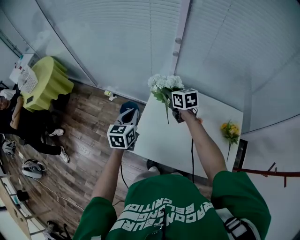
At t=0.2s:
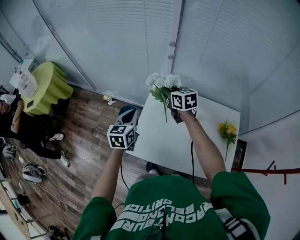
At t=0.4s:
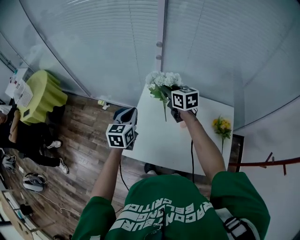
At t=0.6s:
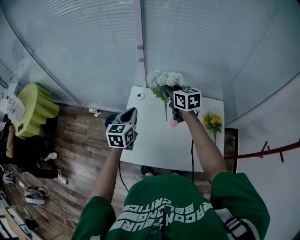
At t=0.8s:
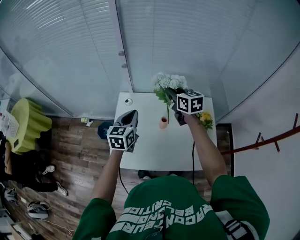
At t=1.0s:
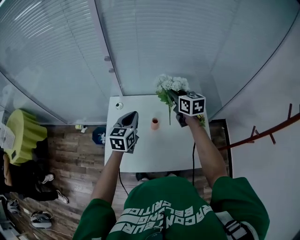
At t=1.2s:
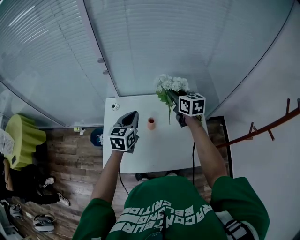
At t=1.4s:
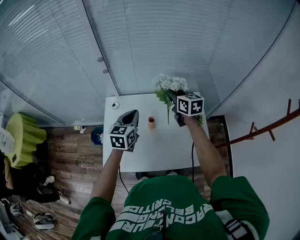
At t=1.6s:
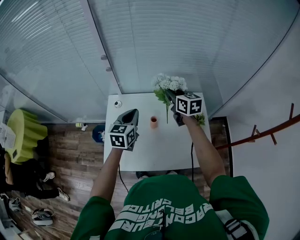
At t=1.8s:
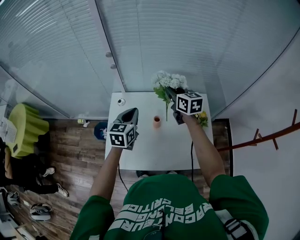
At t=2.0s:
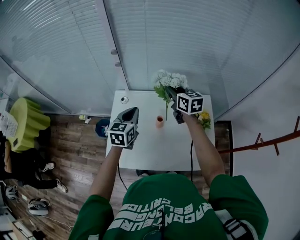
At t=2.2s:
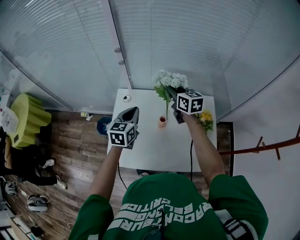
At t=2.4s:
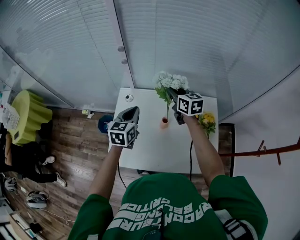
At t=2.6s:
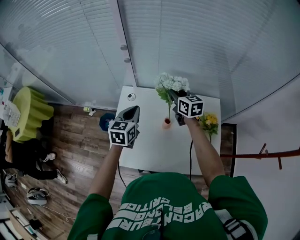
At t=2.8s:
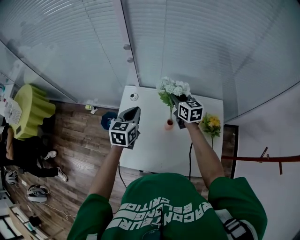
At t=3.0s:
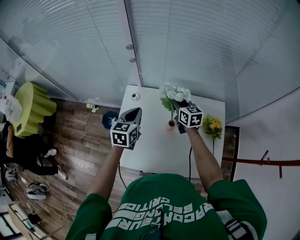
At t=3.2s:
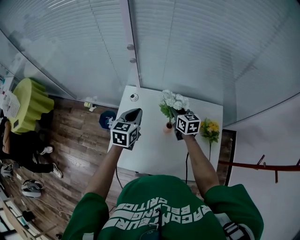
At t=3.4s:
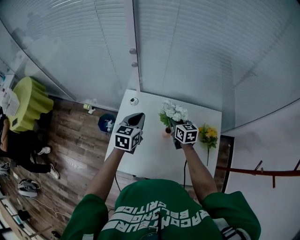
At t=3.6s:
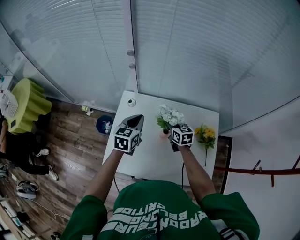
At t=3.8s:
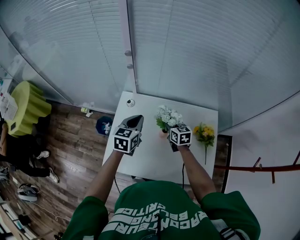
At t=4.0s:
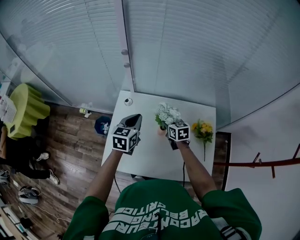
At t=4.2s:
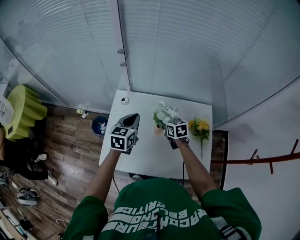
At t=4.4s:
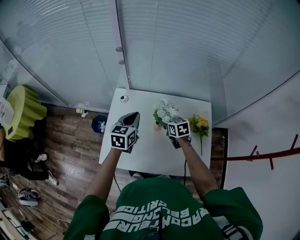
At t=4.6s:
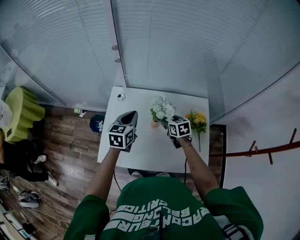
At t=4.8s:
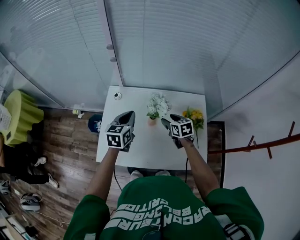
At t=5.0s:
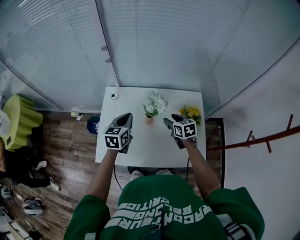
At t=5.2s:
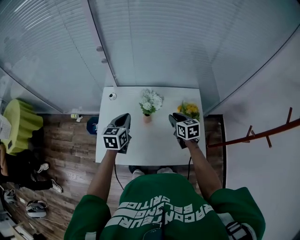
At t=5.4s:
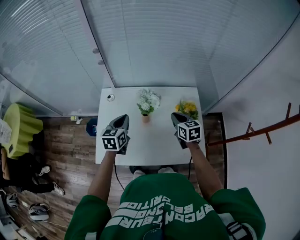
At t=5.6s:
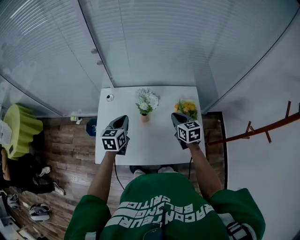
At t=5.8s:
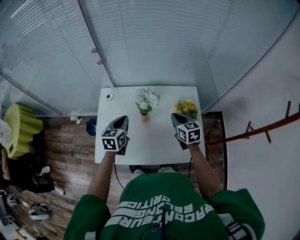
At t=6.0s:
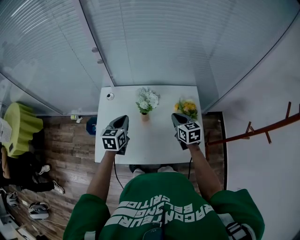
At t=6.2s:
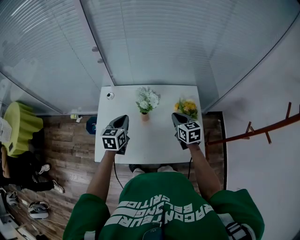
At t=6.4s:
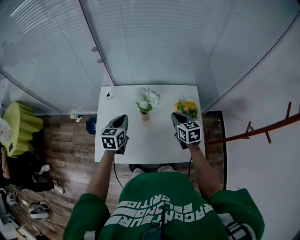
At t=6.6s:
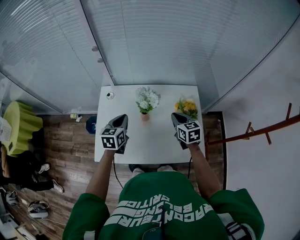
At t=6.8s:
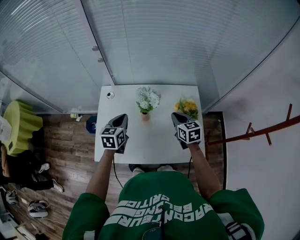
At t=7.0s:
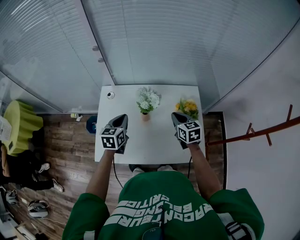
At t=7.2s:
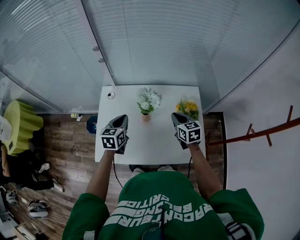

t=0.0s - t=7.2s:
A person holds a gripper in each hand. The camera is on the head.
t=0.0s - t=1.4s: The right gripper moves roughly 35 cm, and turns by roughly 30 degrees. Meanwhile the left gripper moves roughly 30 cm, and swivels roughly 30 degrees.
t=1.4s - t=2.8s: The left gripper shifts some 10 cm to the left and forward. The right gripper heads to the left, downward and forward, covering about 15 cm.
t=2.8s - t=4.4s: The right gripper travels backward and downward by approximately 15 cm, changes its angle by about 20 degrees, and opens. Meanwhile the left gripper moves approximately 5 cm.
t=4.4s - t=5.8s: The right gripper shifts approximately 20 cm to the right, upward and backward, and closes up, while the left gripper goes approximately 5 cm backward.
t=5.8s - t=7.2s: The two grippers keep their place.

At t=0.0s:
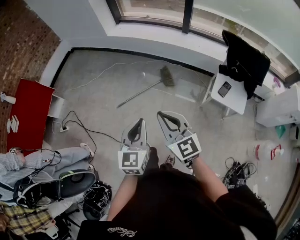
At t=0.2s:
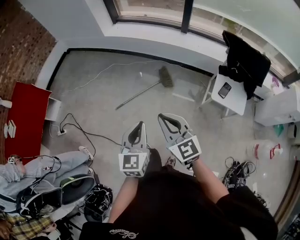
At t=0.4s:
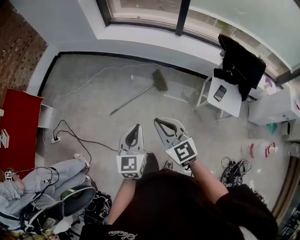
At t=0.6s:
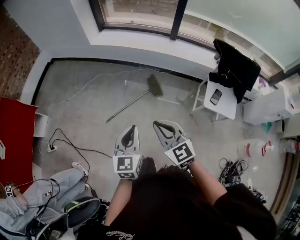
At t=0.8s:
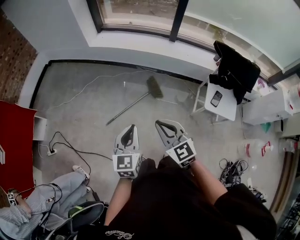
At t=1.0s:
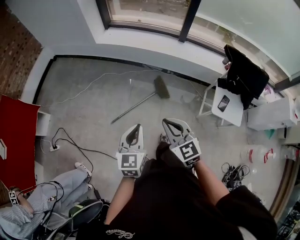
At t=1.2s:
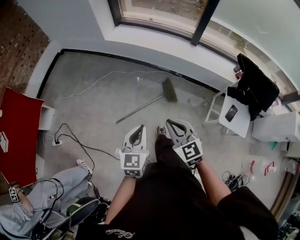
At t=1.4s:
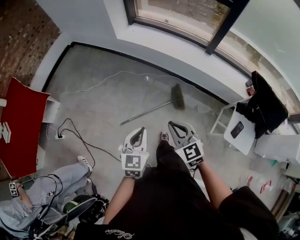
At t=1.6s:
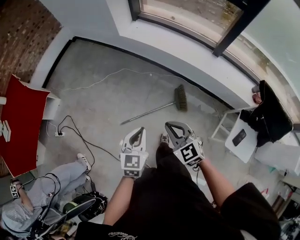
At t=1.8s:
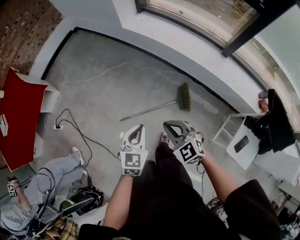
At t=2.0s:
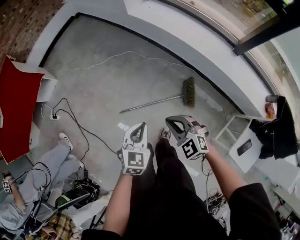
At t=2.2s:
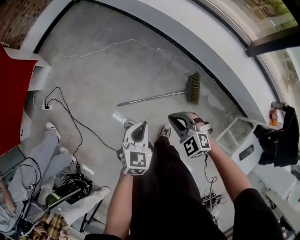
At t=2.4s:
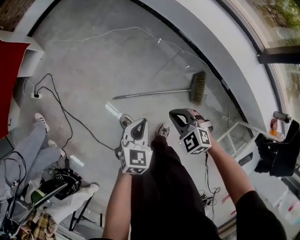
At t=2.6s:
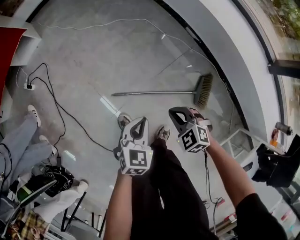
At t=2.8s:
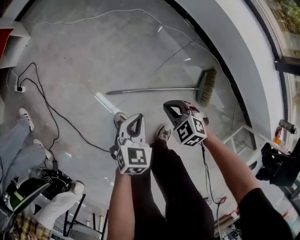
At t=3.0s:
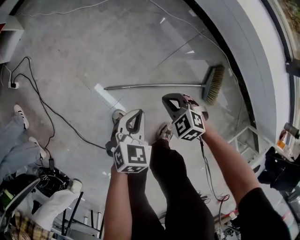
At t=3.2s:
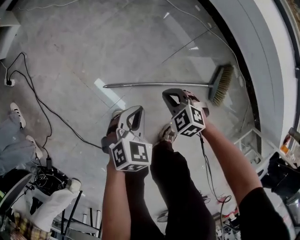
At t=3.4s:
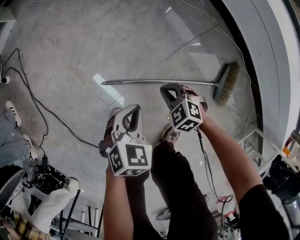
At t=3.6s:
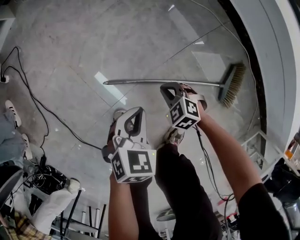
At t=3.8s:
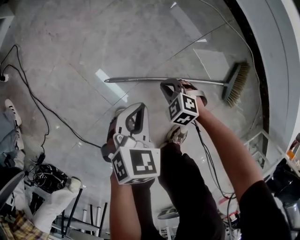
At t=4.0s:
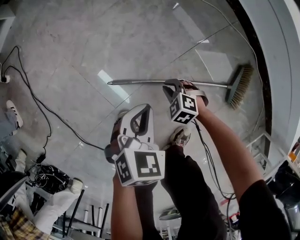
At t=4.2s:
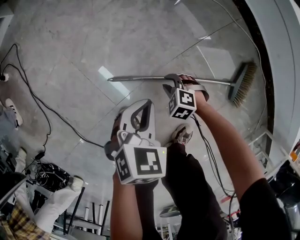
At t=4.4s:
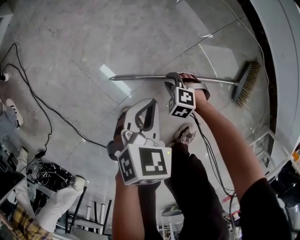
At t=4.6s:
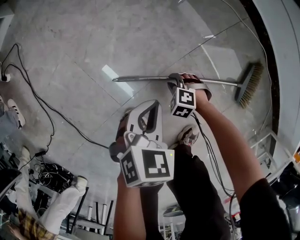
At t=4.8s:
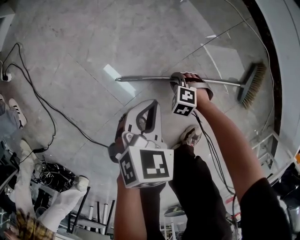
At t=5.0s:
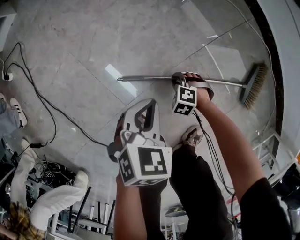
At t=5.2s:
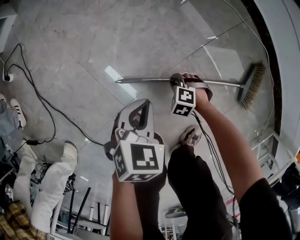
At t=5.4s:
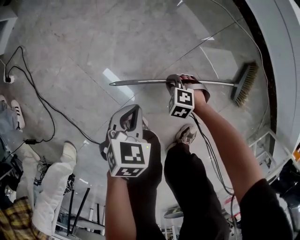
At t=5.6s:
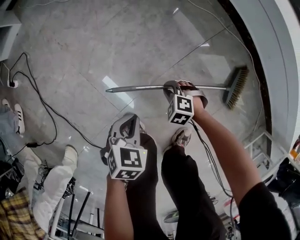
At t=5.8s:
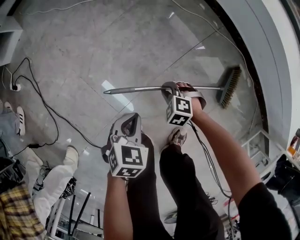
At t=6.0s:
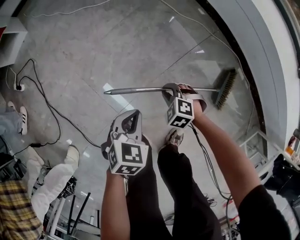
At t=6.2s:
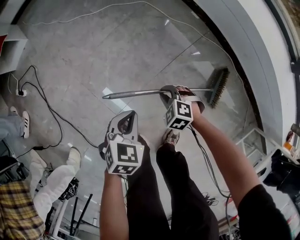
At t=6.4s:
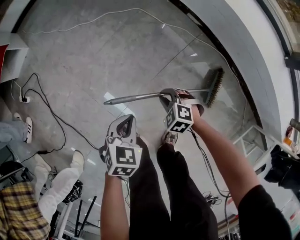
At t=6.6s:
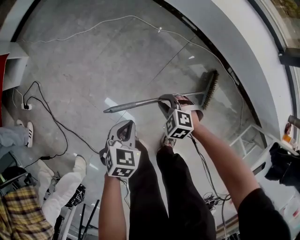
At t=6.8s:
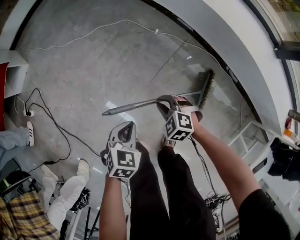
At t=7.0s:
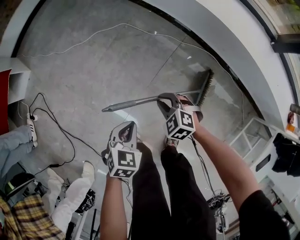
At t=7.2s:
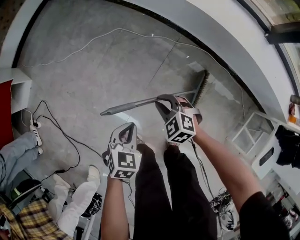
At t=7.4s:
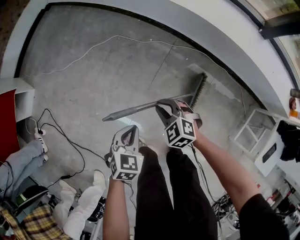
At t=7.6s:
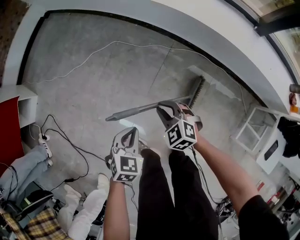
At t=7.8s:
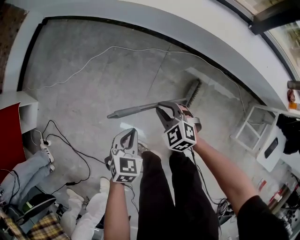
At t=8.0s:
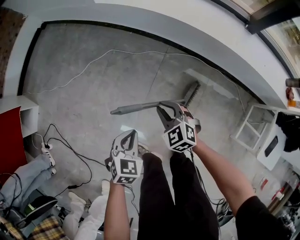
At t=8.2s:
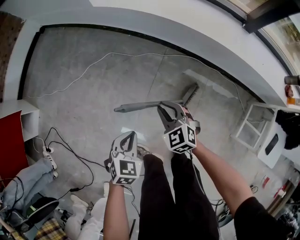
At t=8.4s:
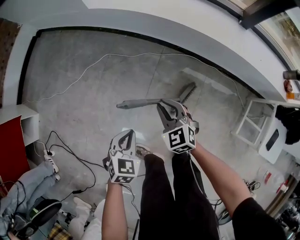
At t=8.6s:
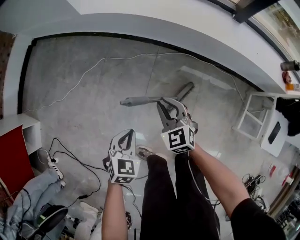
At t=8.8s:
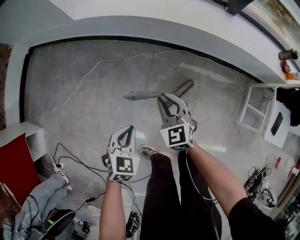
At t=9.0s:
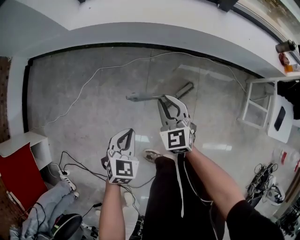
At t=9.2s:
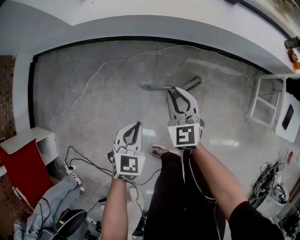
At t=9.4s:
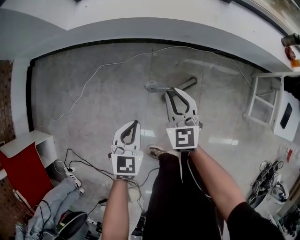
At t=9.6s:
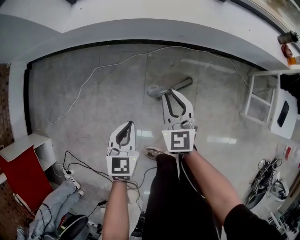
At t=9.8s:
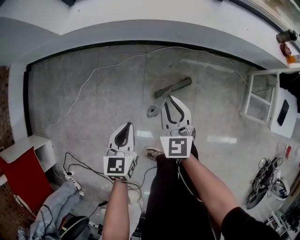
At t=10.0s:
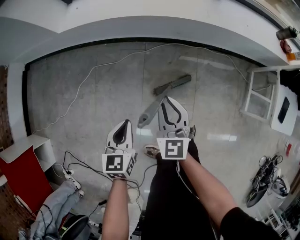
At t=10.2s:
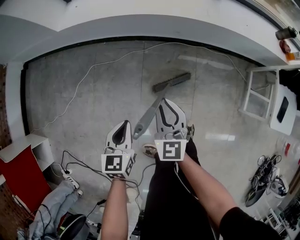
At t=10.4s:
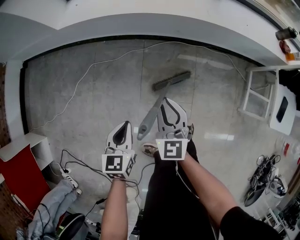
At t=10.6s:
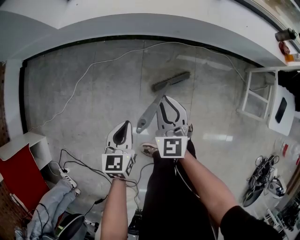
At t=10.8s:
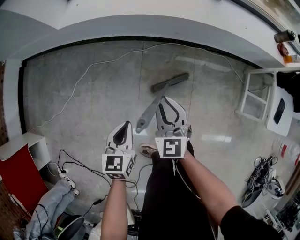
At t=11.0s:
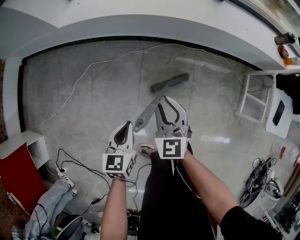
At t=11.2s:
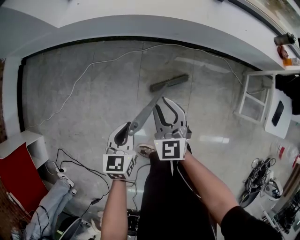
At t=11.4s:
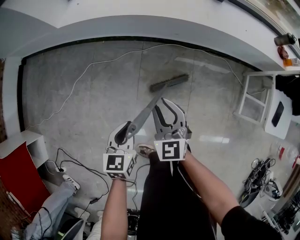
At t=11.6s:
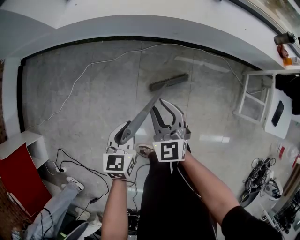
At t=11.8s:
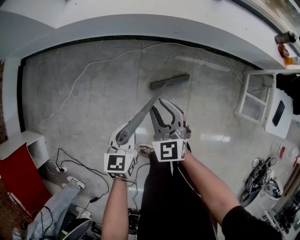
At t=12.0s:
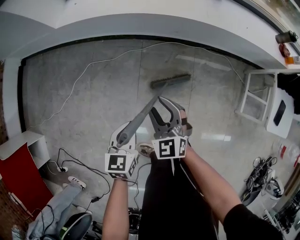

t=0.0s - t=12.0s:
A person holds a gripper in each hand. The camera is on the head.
t=0.0s - t=1.6s: The two grippers go about 35 cm forward. The right gripper swivels approximately 30 degrees.
t=1.6s - t=3.0s: The grippers both shift downward by roughly 50 cm. The left gripper rotates about 20 degrees. Meanwhile the right gripper rotates approximately 40 degrees.
t=3.0s - t=4.4s: The right gripper goes about 25 cm downward, rotates some 20 degrees, and opens, while the left gripper moves downward, approximately 10 cm.
t=4.4s - t=6.0s: The left gripper is displaced upward by approximately 10 cm, while the right gripper moves upward, some 15 cm.
t=6.0s - t=7.6s: The right gripper heads upward, covering some 25 cm, and rotates about 40 degrees; the left gripper is displaced upward and to the right by approximately 15 cm.
t=7.6s - t=9.0s: The left gripper changes place by approximately 5 cm, and swivels approximately 20 degrees. Meanwhile the right gripper changes place by some 10 cm, and rotates roughly 50 degrees.
t=9.0s - t=10.4s: The left gripper rotates about 30 degrees.
t=10.4s - t=12.0s: The grippers move only a little.

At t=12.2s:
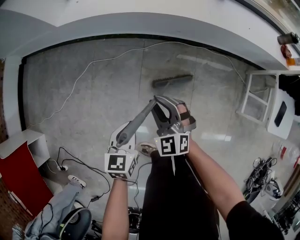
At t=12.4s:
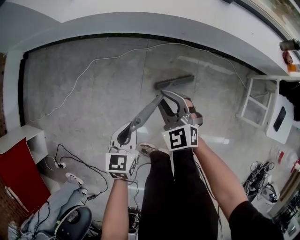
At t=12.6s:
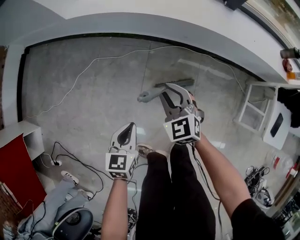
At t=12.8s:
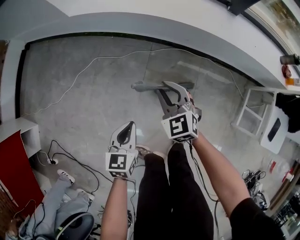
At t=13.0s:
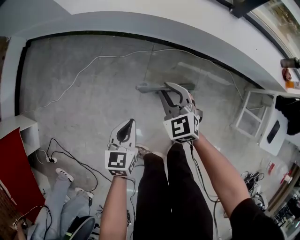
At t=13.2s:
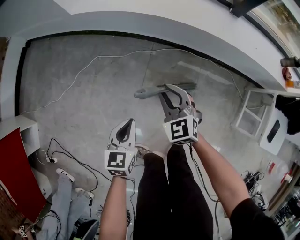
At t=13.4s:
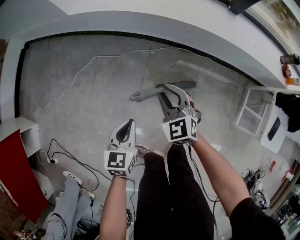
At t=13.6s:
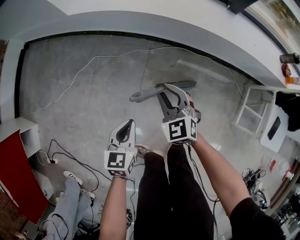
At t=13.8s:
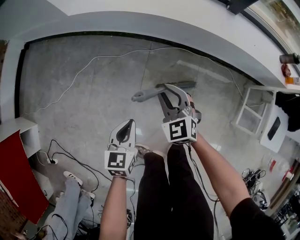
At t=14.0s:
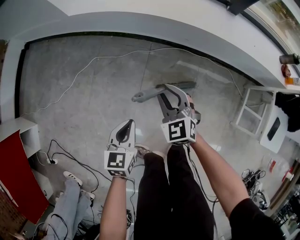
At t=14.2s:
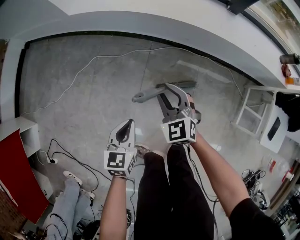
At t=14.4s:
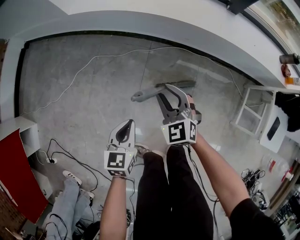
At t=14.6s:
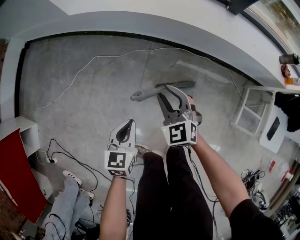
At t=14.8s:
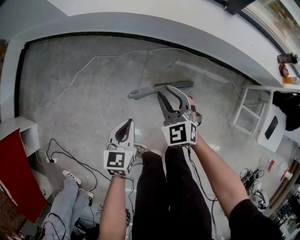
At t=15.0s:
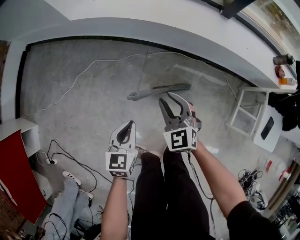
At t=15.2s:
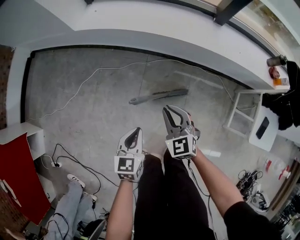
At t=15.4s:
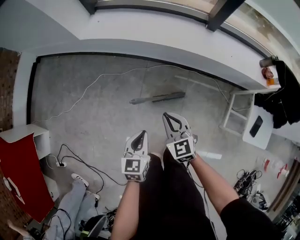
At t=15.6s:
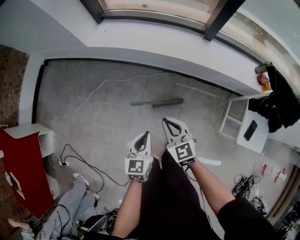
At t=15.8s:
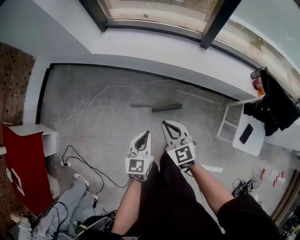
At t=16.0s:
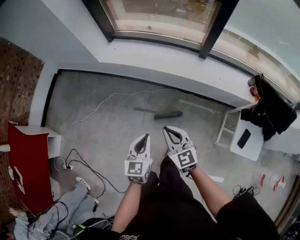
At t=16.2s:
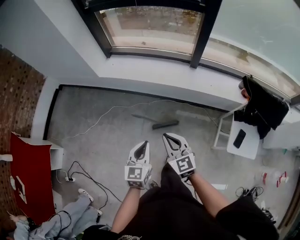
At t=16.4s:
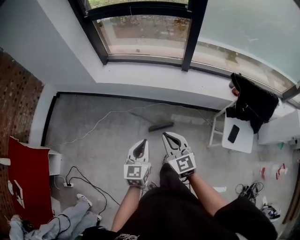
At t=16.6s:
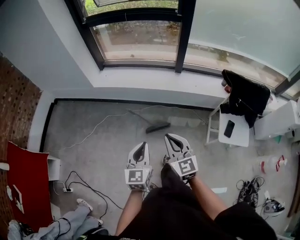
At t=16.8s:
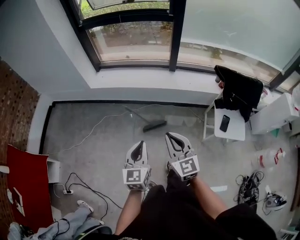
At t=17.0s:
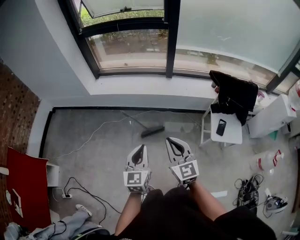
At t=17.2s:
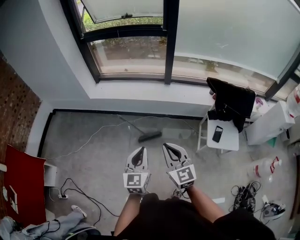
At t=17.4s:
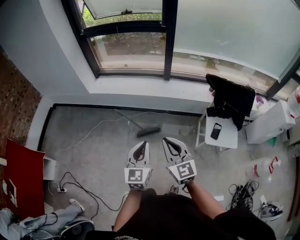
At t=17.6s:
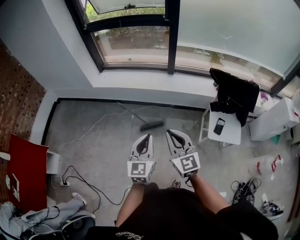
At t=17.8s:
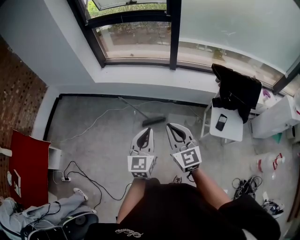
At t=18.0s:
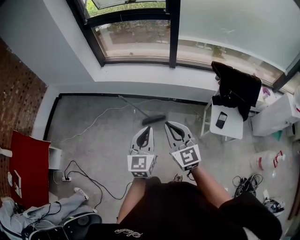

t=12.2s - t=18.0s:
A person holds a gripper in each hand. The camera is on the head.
t=12.2s - t=13.6s: The right gripper goes some 5 cm forward.
t=13.6s - t=15.0s: The right gripper moves about 5 cm.
t=15.0s - t=16.6s: Both grippers travel together upward and backward, about 40 cm. The left gripper turns by about 20 degrees. Meanwhile the right gripper turns by roughly 30 degrees, and closes up.
t=16.6s - t=18.0s: The two grippers go some 15 cm to the right, backward and upward.
